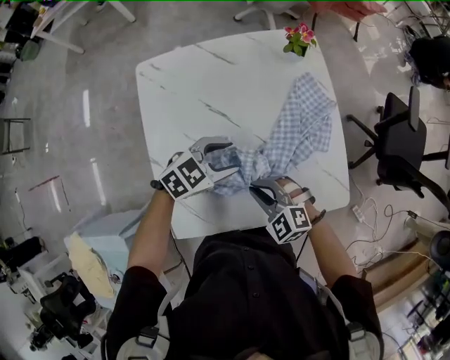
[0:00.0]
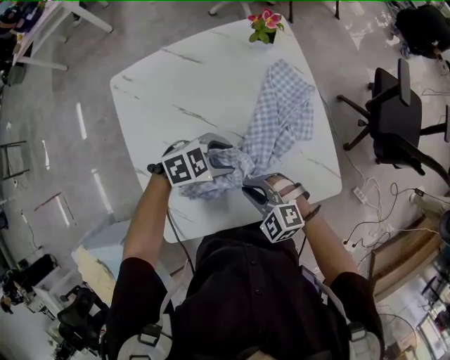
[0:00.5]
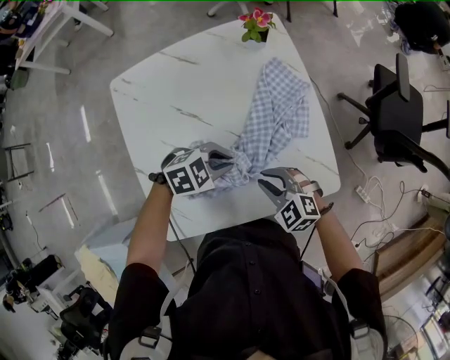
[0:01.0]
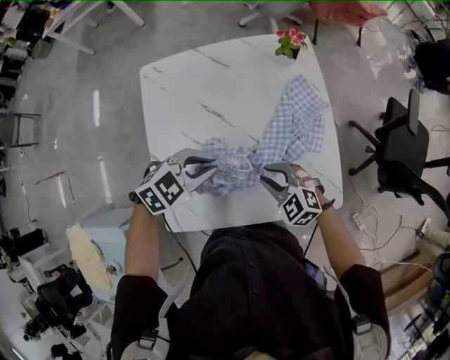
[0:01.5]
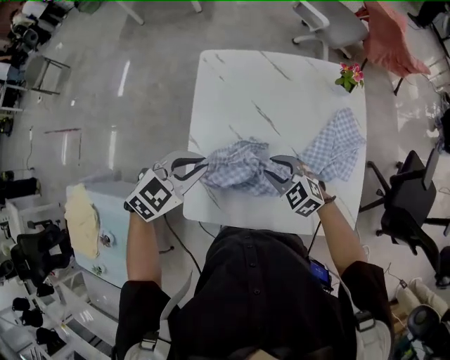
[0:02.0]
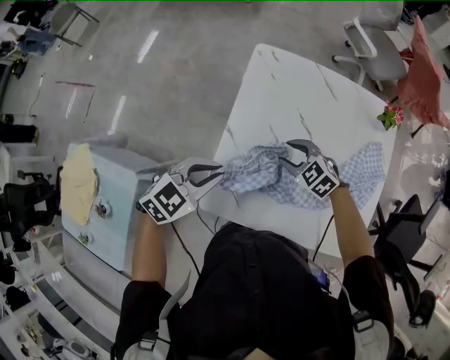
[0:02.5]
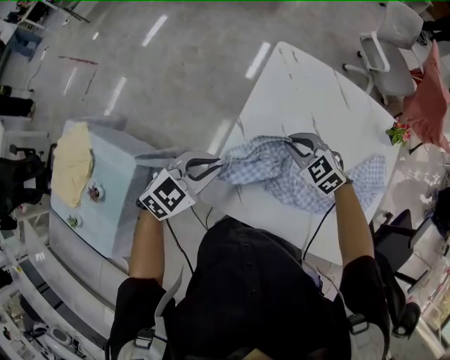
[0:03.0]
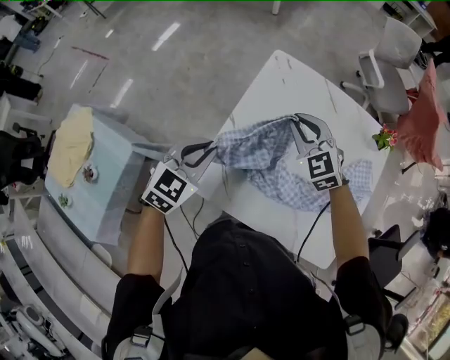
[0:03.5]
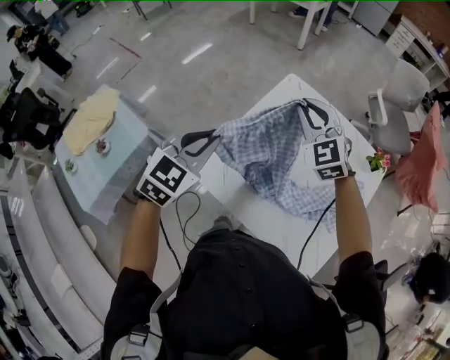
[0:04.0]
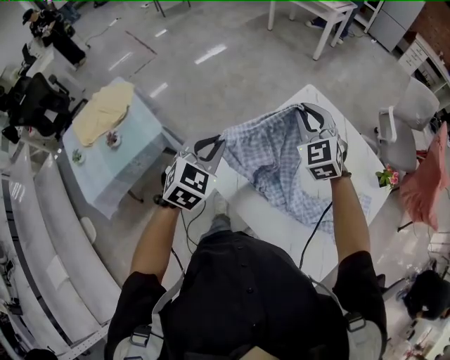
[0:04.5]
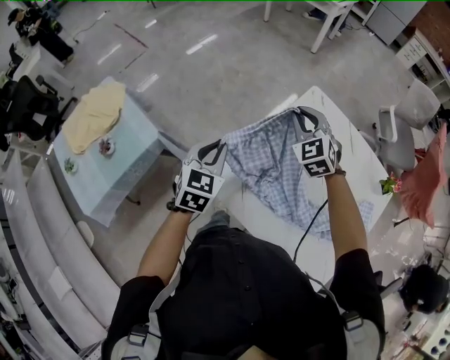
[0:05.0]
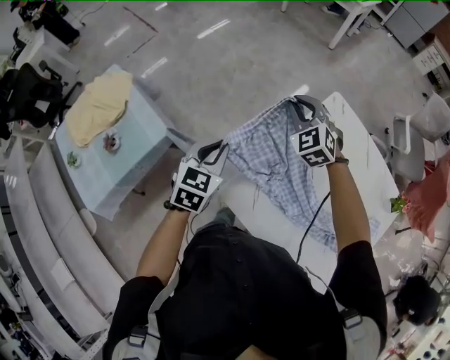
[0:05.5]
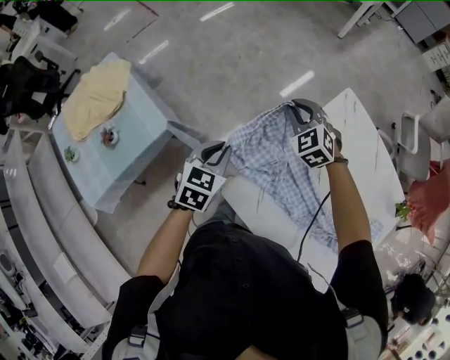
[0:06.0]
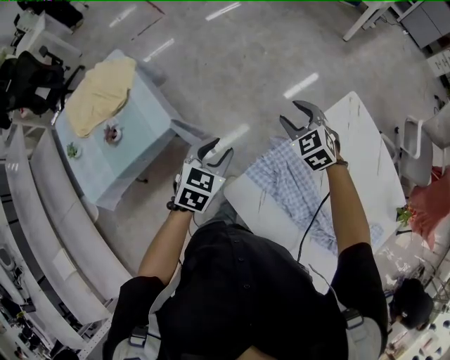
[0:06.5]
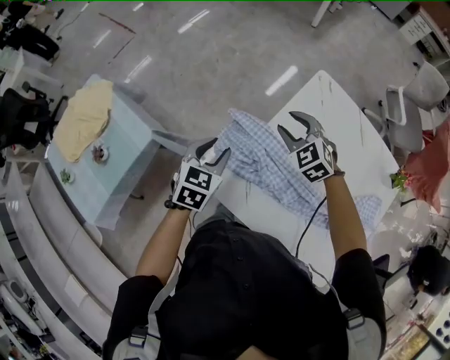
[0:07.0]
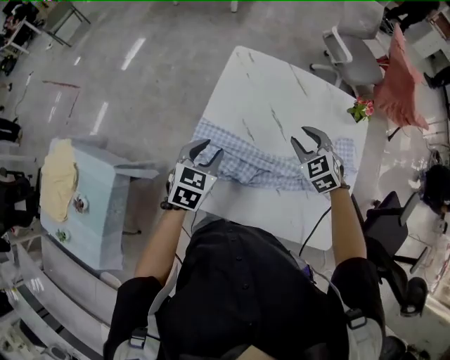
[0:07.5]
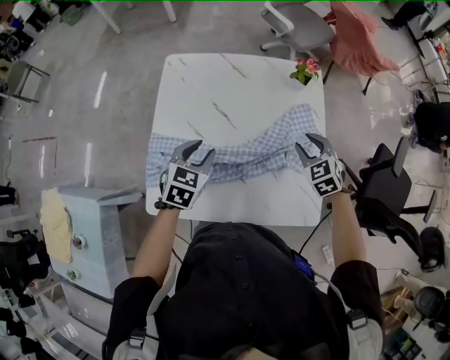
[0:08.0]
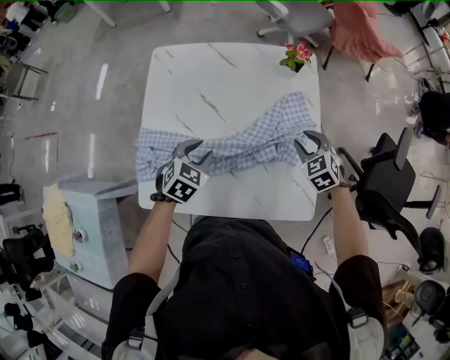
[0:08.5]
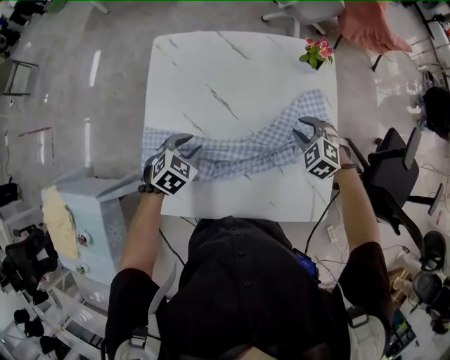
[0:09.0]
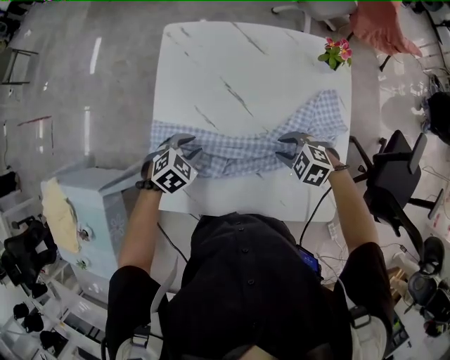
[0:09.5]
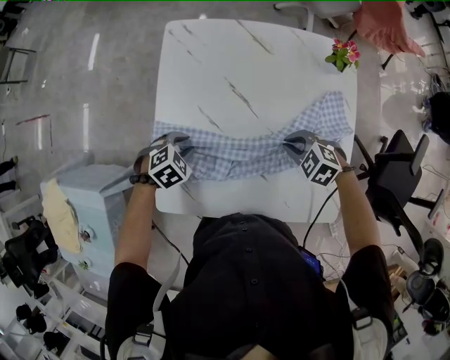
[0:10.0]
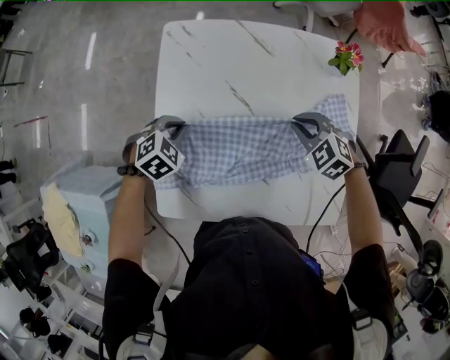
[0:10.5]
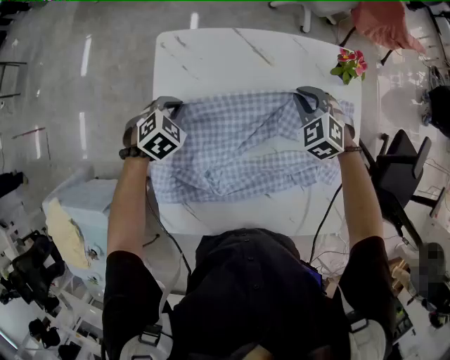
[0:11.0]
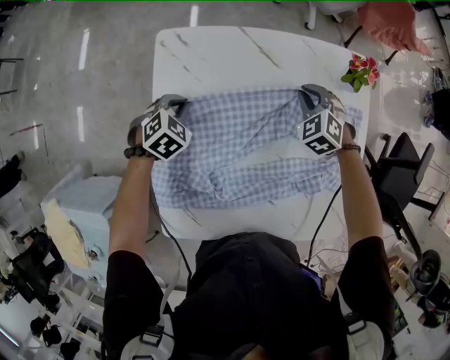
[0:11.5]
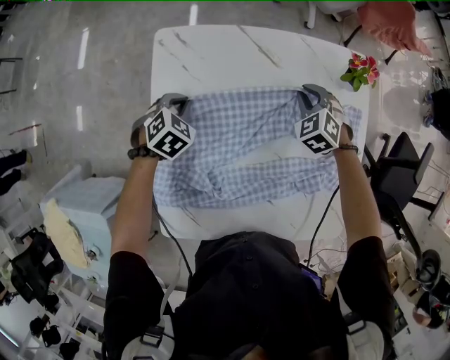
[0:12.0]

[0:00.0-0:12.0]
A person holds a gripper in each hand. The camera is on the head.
0:00.0 to 0:02.0: The right gripper changes place by roughly 10 cm. The left gripper shifts by approximately 20 cm, rotates roughly 30 degrees, and closes.
0:02.0 to 0:04.0: The left gripper is displaced upward by roughly 15 cm, and swivels about 50 degrees. Meanwhile the right gripper travels upward by roughly 25 cm, and turns by approximately 40 degrees.
0:04.0 to 0:06.0: Both grippers travel together downward, to the left and forward, roughly 30 cm. The right gripper turns by some 20 degrees, while the left gripper turns by some 30 degrees.
0:06.0 to 0:08.0: The left gripper ends up some 40 cm from where it was, and swivels some 40 degrees, while the right gripper moves approximately 60 cm, and changes its angle by some 50 degrees.
0:08.0 to 0:10.0: The left gripper moves downward, roughly 15 cm, and points its fingers approximately 30 degrees further downward; the right gripper changes place by some 15 cm, and changes its angle by some 40 degrees.
0:10.0 to 0:12.0: The left gripper shifts by approximately 20 cm; the right gripper changes place by some 25 cm, and rotates about 40 degrees.

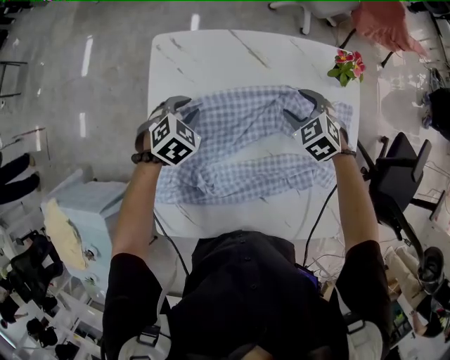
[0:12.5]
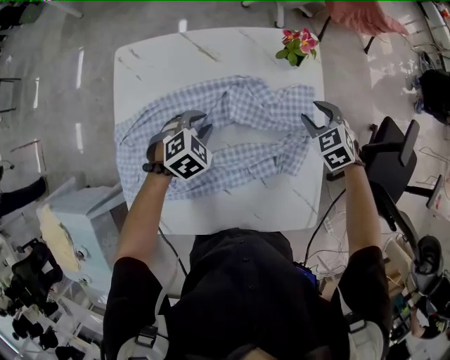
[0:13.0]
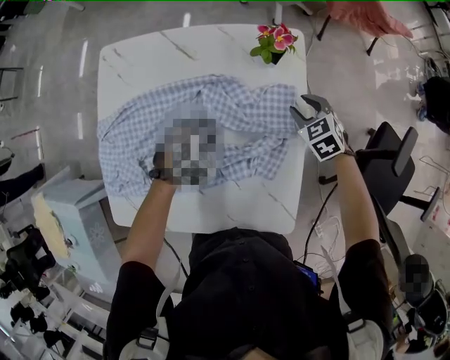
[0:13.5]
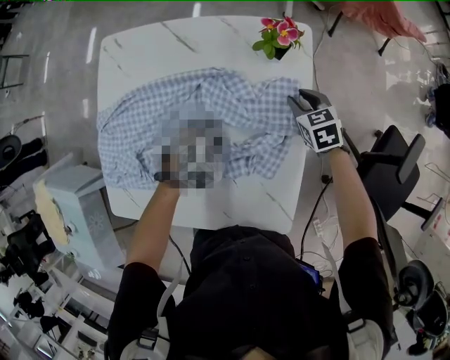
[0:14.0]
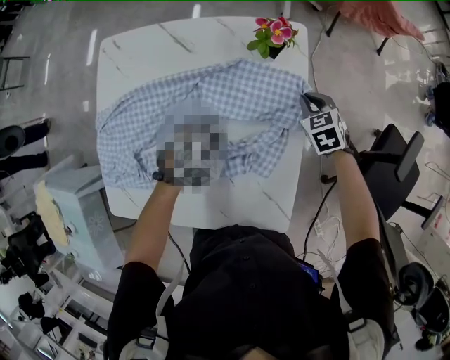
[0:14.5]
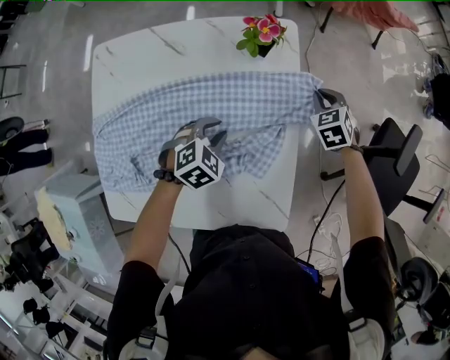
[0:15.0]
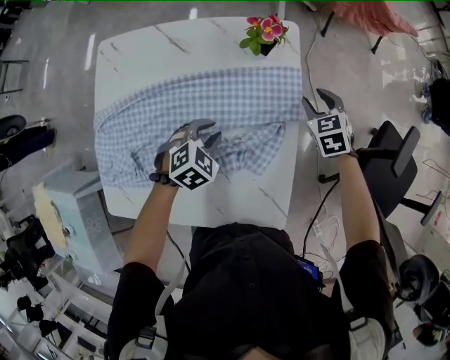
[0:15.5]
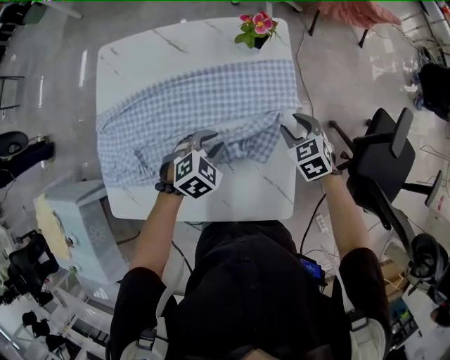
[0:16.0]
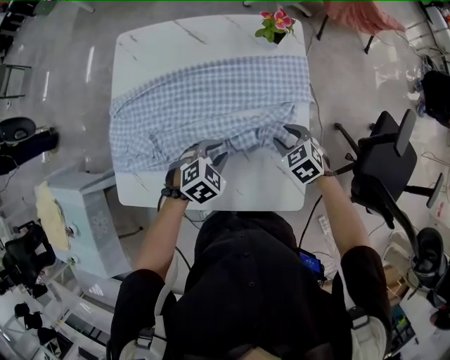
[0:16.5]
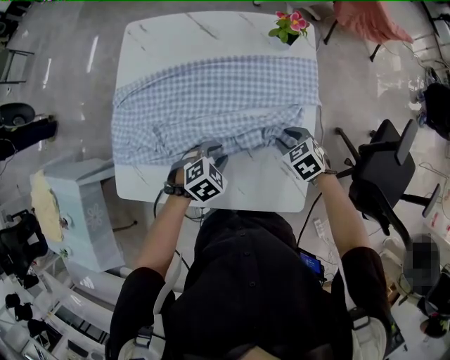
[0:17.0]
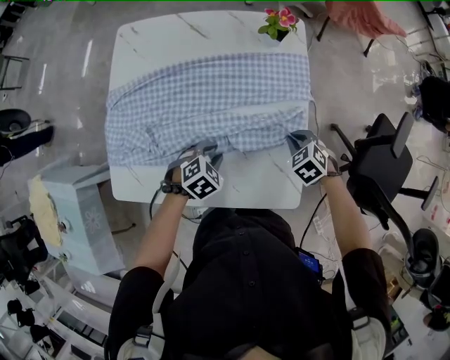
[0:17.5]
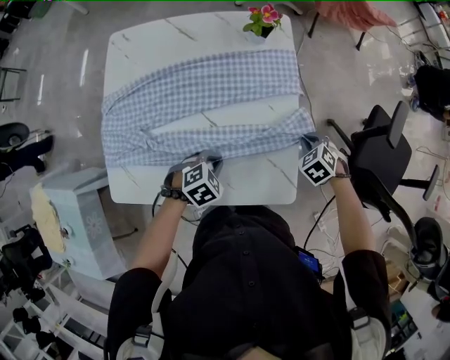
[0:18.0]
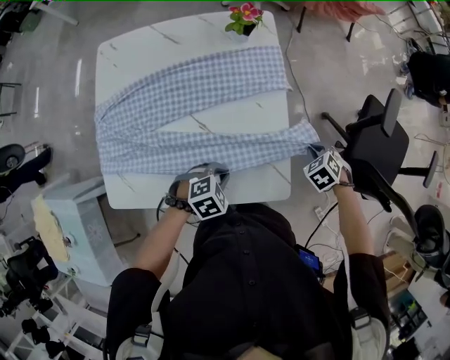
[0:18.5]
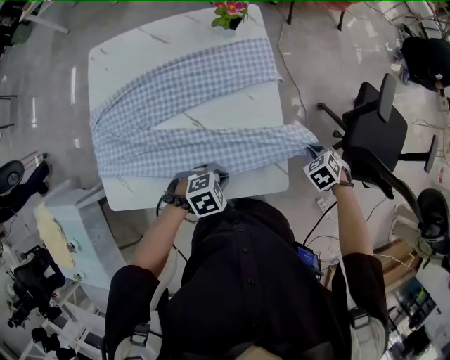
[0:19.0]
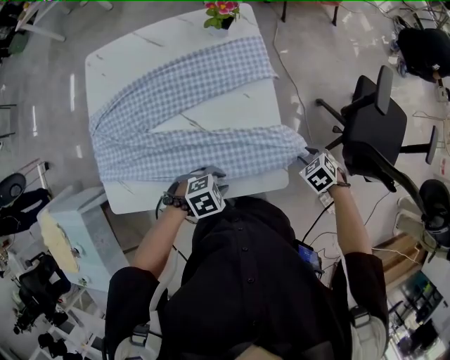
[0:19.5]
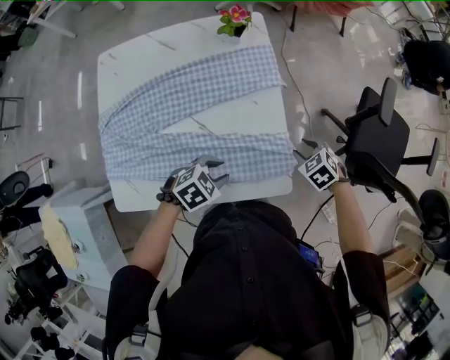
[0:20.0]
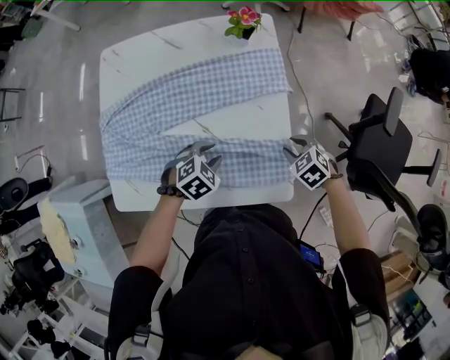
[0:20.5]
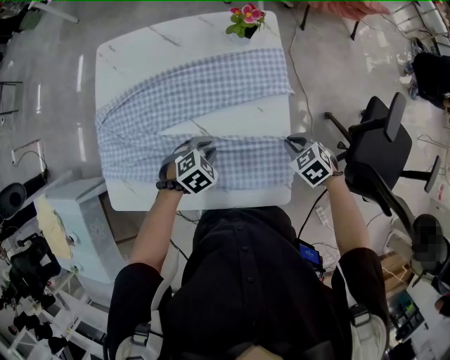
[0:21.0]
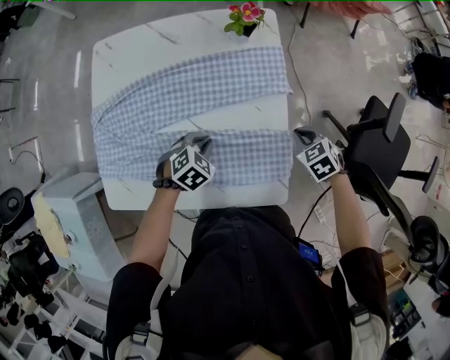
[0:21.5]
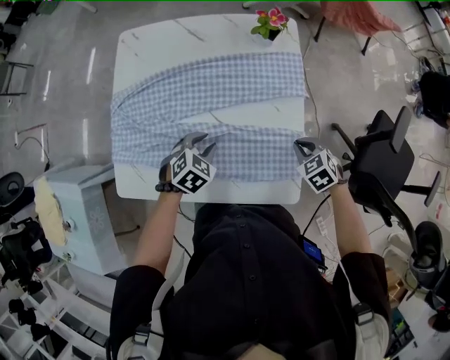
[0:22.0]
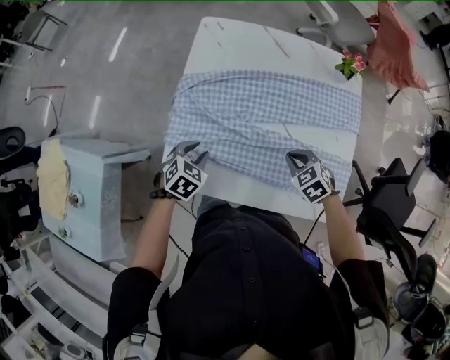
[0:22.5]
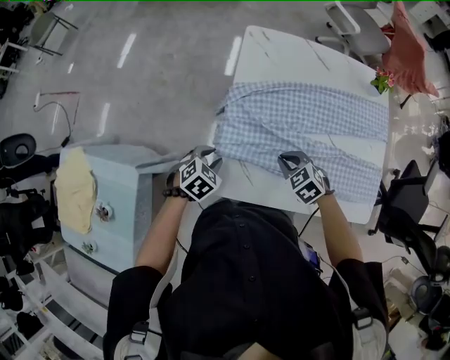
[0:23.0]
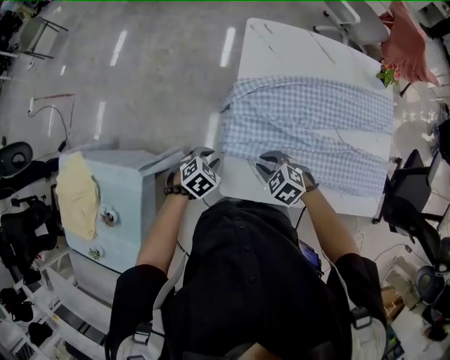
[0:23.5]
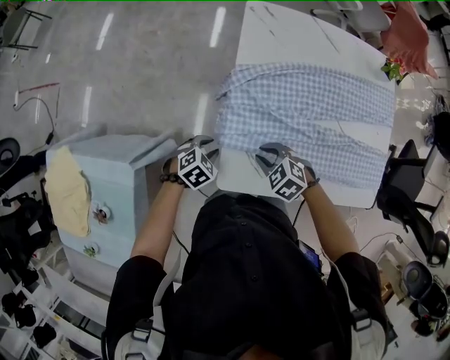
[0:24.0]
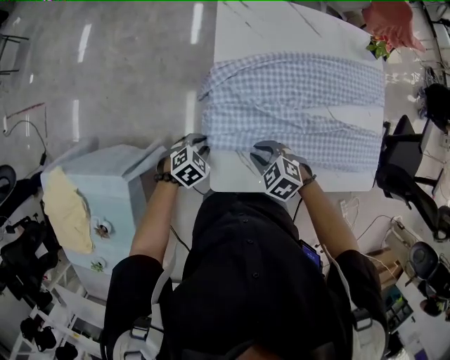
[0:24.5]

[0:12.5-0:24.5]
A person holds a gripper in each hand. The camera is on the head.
0:12.5 to 0:14.5: Both grippers move to the right, some 30 cm. The right gripper closes up.
0:14.5 to 0:16.5: The left gripper heads backward, covering approximately 15 cm. The right gripper heads backward, covering approximately 20 cm.
0:16.5 to 0:18.5: The left gripper moves approximately 10 cm. Meanwhile the right gripper ends up roughly 20 cm from where it was, and rotates roughly 20 degrees.
0:18.5 to 0:20.5: The left gripper moves approximately 10 cm. The right gripper shifts by some 10 cm.
0:20.5 to 0:22.5: The two grippers go about 30 cm to the left. The left gripper turns by approximately 30 degrees.
0:22.5 to 0:24.5: The left gripper moves some 20 cm, and changes its angle by roughly 20 degrees. The right gripper shifts by approximately 30 cm.

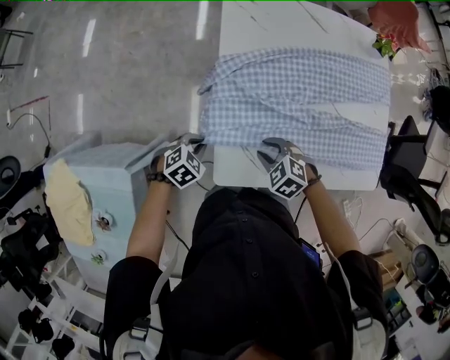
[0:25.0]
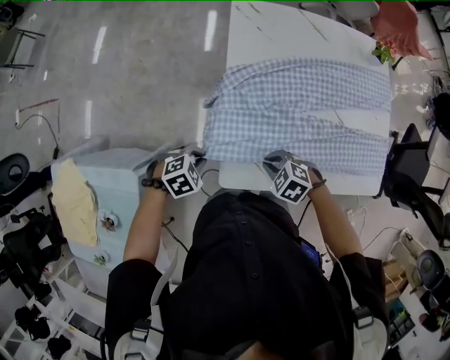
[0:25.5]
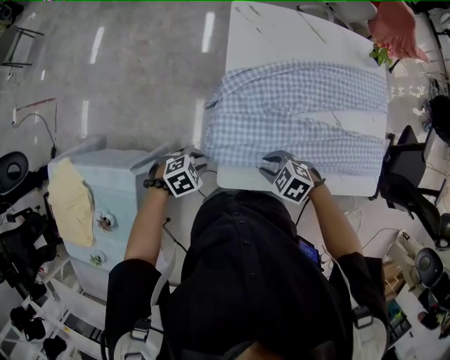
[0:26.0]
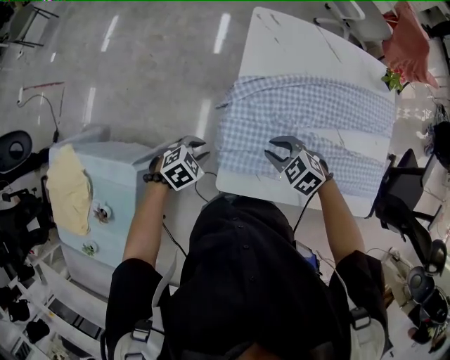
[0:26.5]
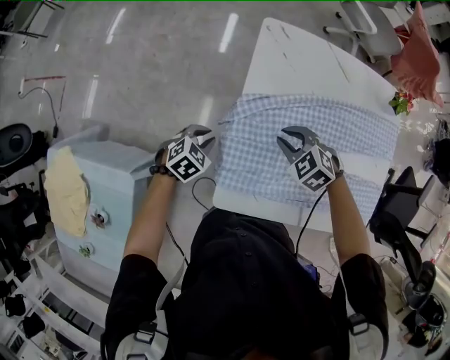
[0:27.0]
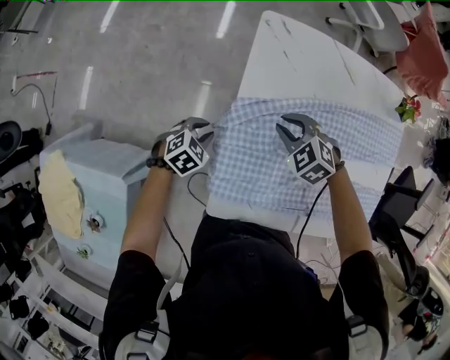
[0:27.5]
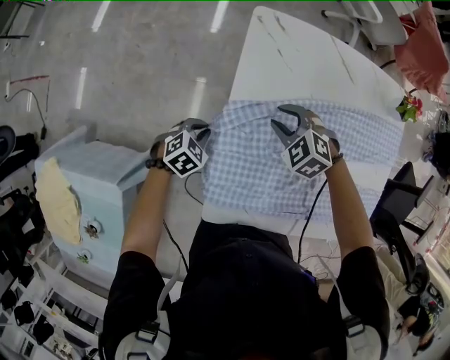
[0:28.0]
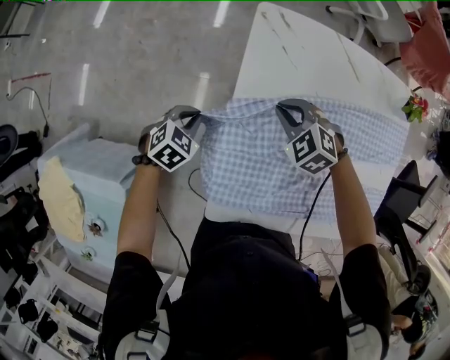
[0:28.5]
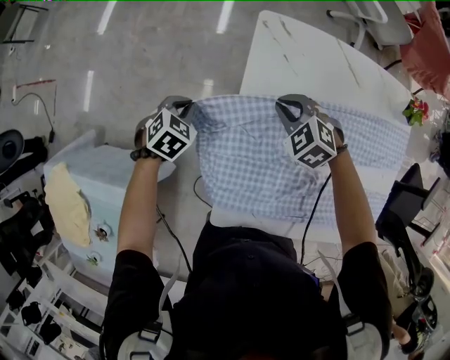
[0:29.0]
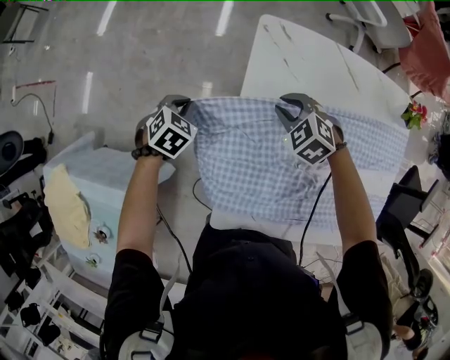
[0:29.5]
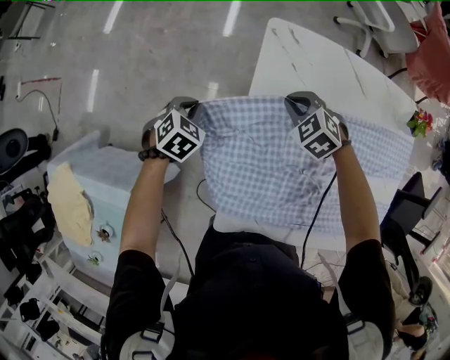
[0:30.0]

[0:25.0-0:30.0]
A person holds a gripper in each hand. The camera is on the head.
0:25.0 to 0:27.5: The right gripper shifts by approximately 25 cm. Meanwhile the left gripper moves approximately 15 cm.
0:27.5 to 0:30.0: The right gripper heads forward, covering about 10 cm; the left gripper heads forward and to the left, covering about 15 cm.
